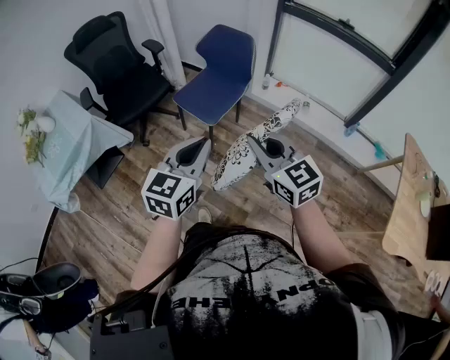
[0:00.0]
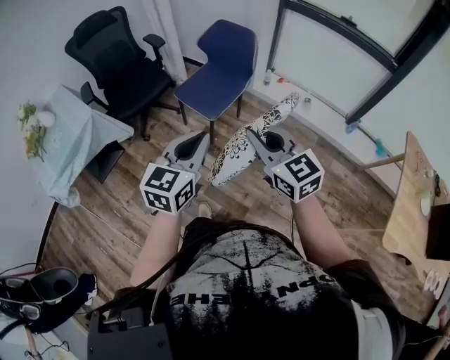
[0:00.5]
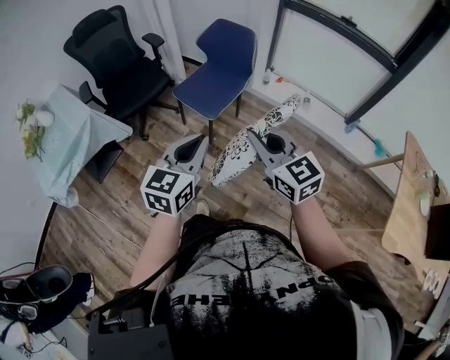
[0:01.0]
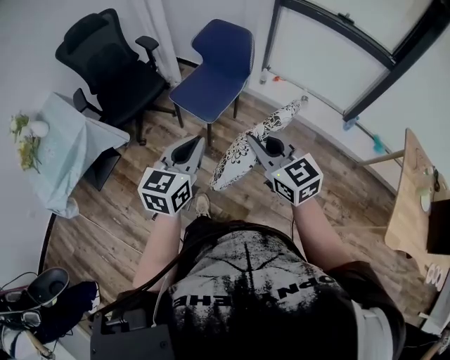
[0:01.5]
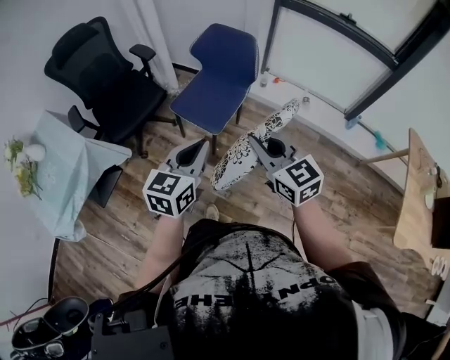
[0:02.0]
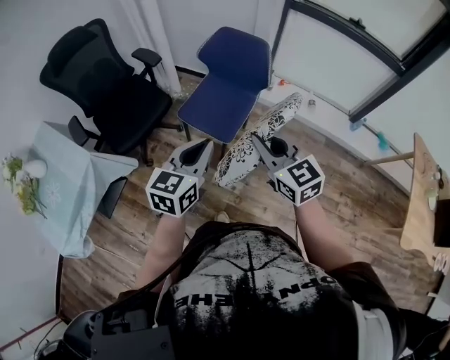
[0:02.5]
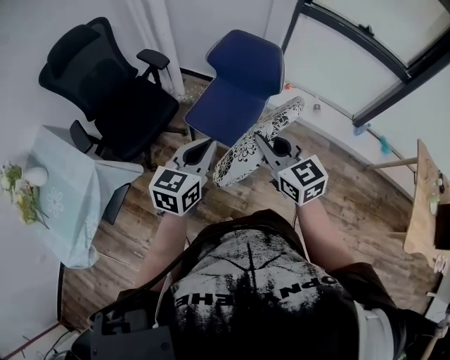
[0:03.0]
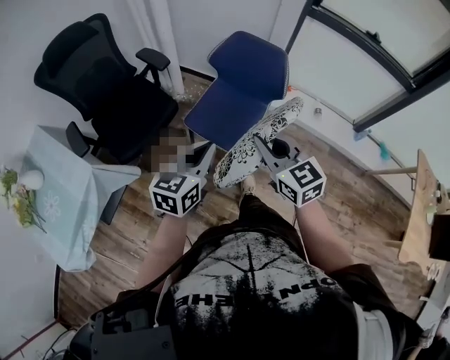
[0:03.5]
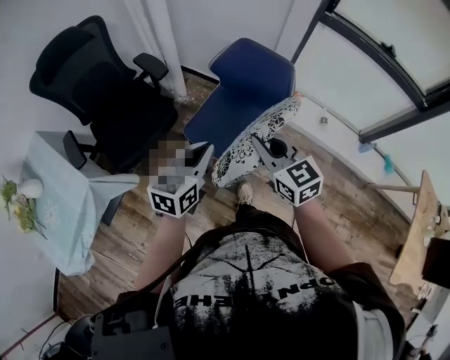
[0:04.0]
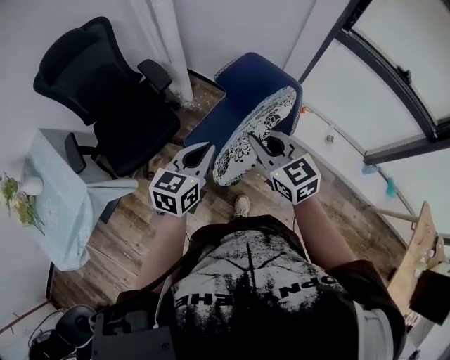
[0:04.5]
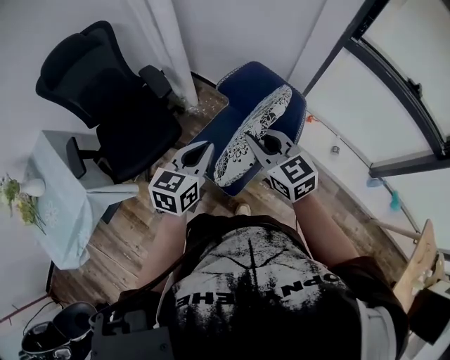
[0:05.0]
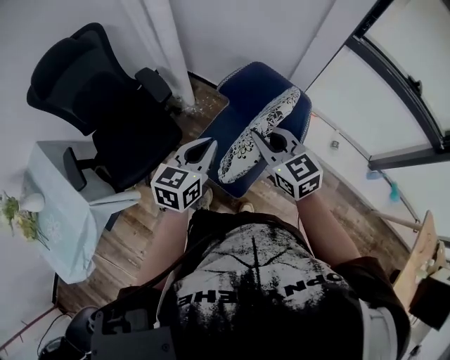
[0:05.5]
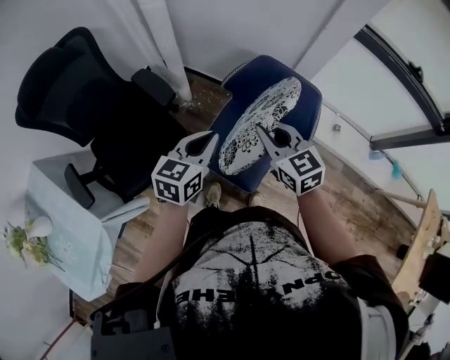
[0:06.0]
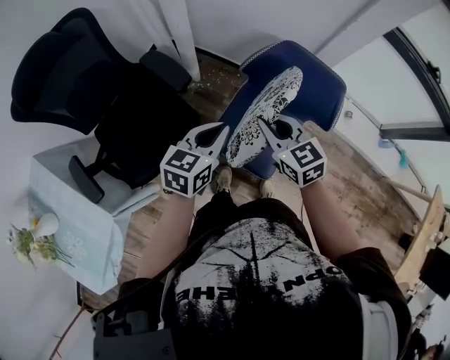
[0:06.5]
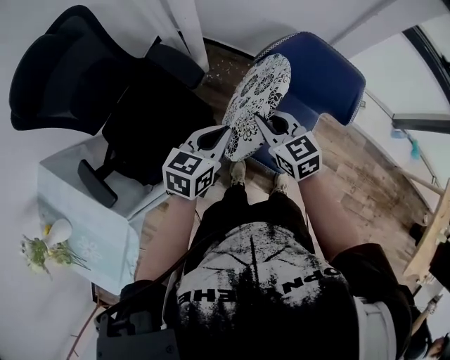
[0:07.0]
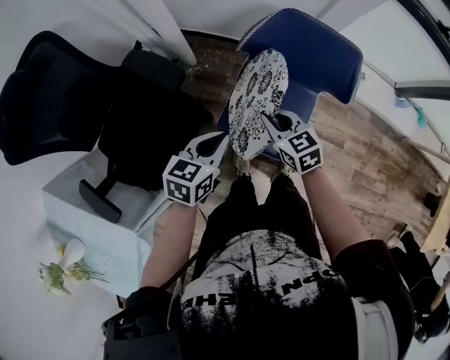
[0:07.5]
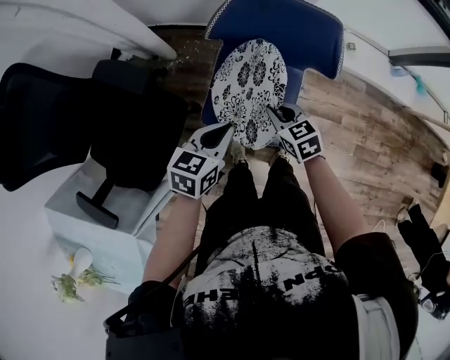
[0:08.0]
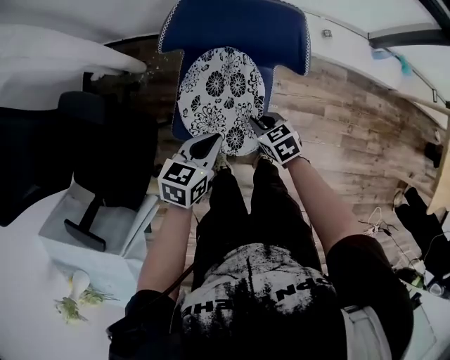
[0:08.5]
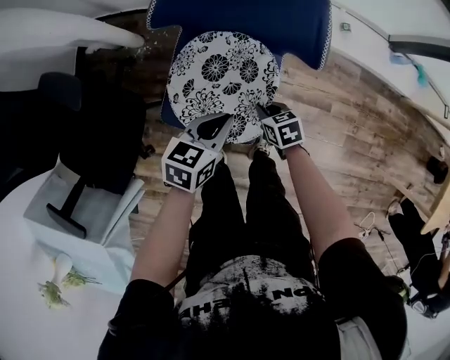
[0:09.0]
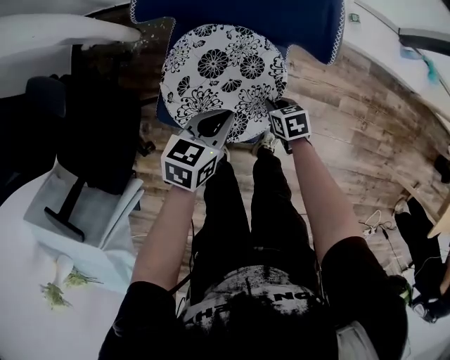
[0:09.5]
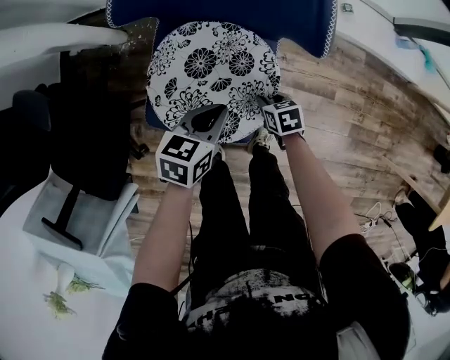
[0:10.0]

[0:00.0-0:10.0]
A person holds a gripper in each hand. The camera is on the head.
0:00.0 to 0:02.0: Both grippers move forward and to the left, approximately 15 cm.
0:02.0 to 0:04.0: The grippers both shift forward by roughly 25 cm.
0:04.0 to 0:06.0: The grippers both shift forward by some 20 cm.
0:06.0 to 0:08.0: The right gripper is displaced downward by some 25 cm, and turns by some 30 degrees. The left gripper is displaced downward by some 15 cm, and turns by approximately 30 degrees.
0:08.0 to 0:10.0: Both grippers move downward and to the right, approximately 25 cm. The right gripper rotates roughly 30 degrees.

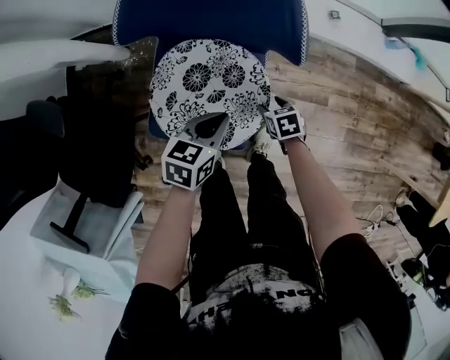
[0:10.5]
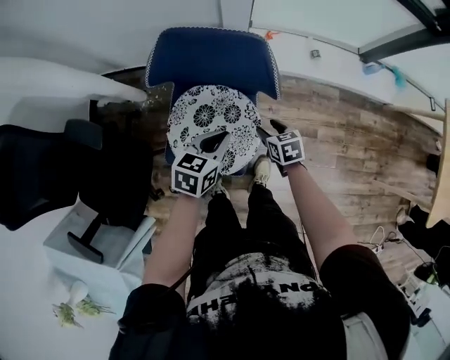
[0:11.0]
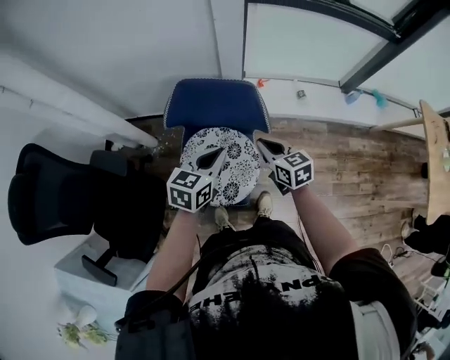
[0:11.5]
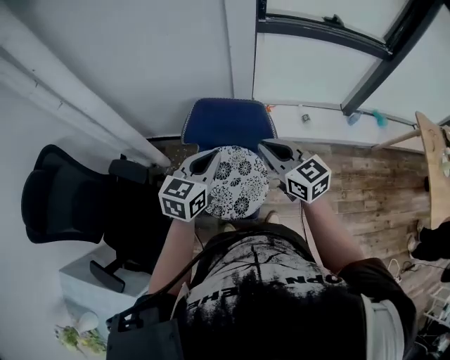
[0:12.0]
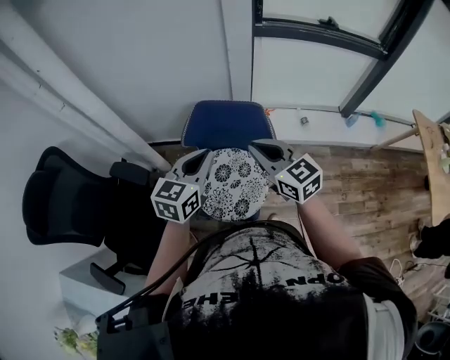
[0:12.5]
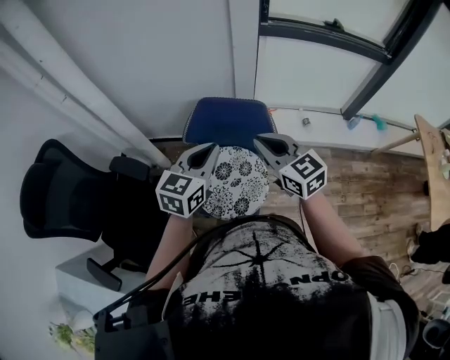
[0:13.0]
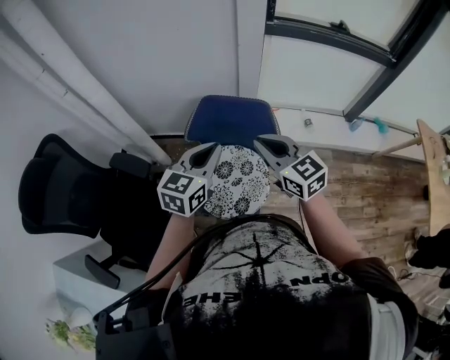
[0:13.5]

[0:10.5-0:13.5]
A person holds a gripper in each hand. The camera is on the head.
0:10.5 to 0:12.0: The left gripper shifts about 35 cm upward, and swivels some 30 degrees. Meanwhile the right gripper travels upward by some 50 cm, tips its fingers upward by roughly 50 degrees, and closes.
0:12.0 to 0:13.5: The grippers make only small movements.

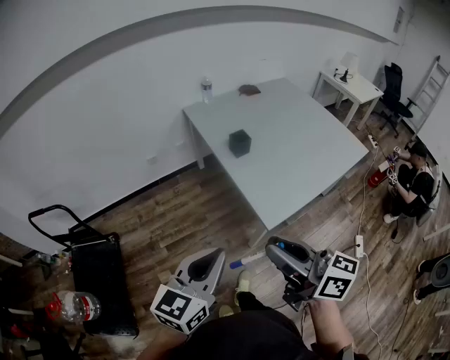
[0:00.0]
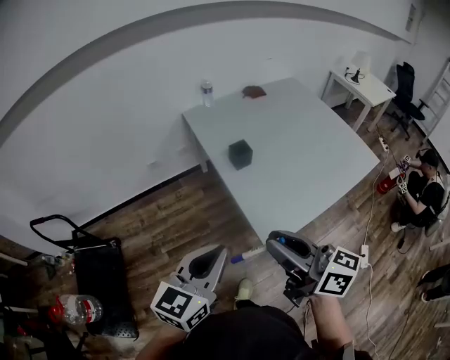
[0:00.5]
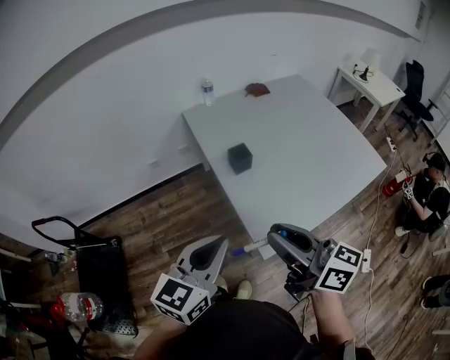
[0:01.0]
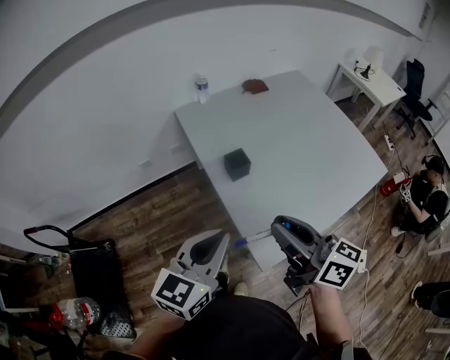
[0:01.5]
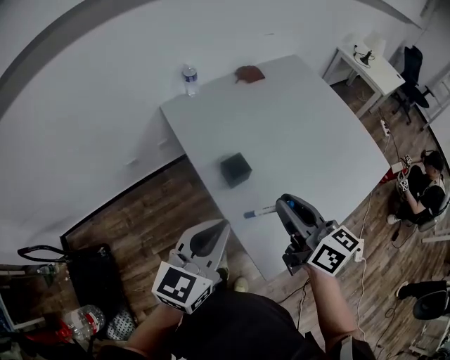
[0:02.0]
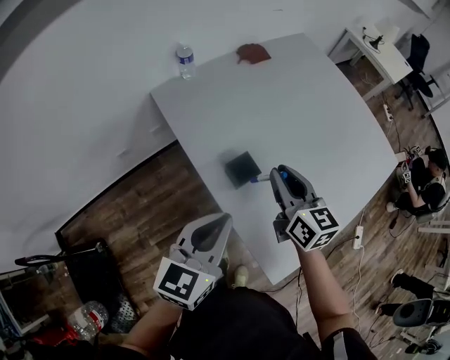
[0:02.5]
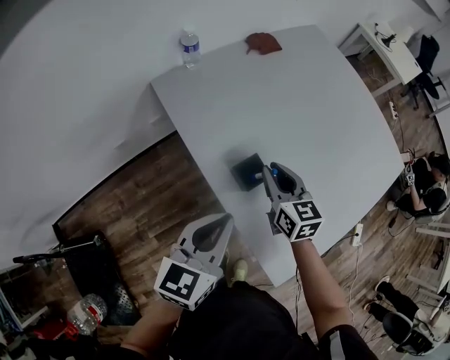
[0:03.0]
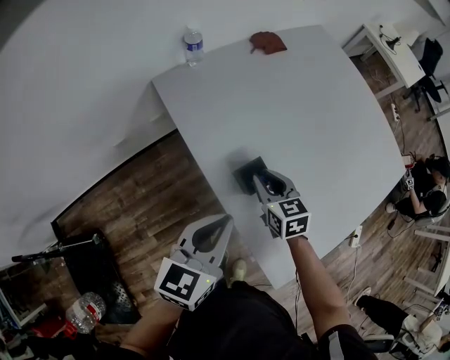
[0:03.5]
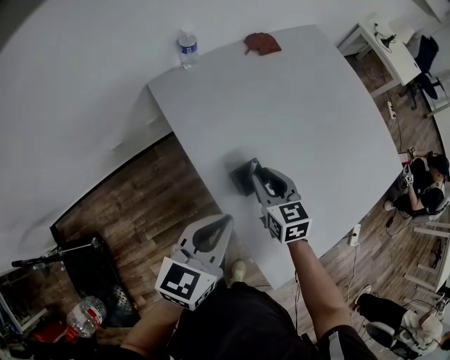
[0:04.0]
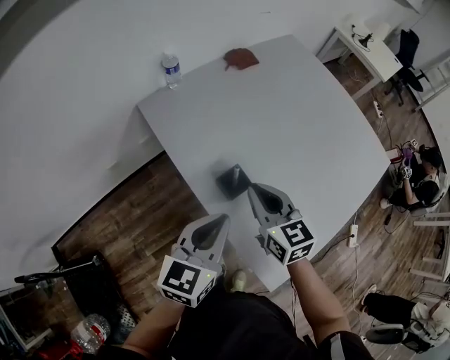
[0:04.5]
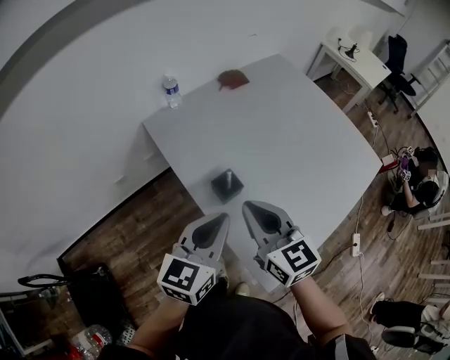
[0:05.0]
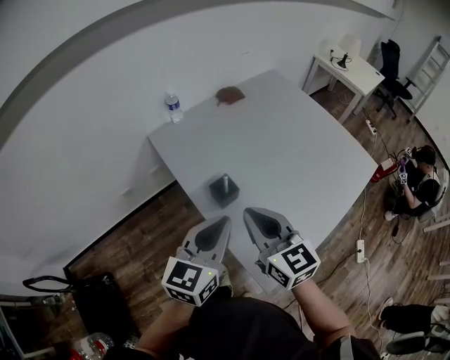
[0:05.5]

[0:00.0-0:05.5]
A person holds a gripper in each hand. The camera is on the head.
0:00.0 to 0:02.0: The grippers both shift forward by approximately 35 cm.
0:02.0 to 0:03.5: The right gripper shifts about 30 cm downward and forward, and angles its fingers downward, by approximately 30 degrees. The left gripper moves forward, downward and to the left, roughly 15 cm.
0:03.5 to 0:05.5: The left gripper shifts approximately 15 cm upward, to the right and backward, while the right gripper shifts approximately 30 cm upward and backward, and swivels approximately 30 degrees.

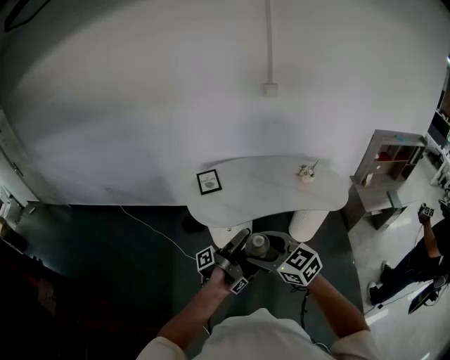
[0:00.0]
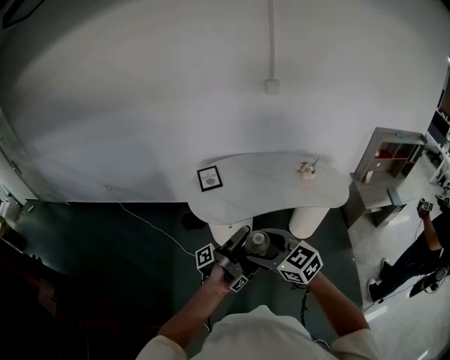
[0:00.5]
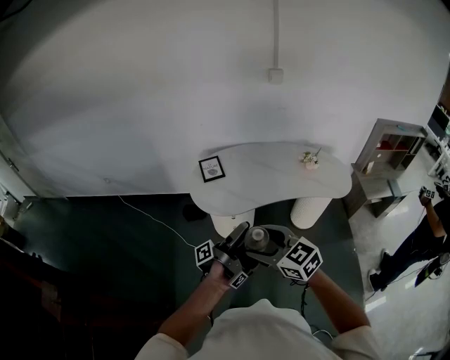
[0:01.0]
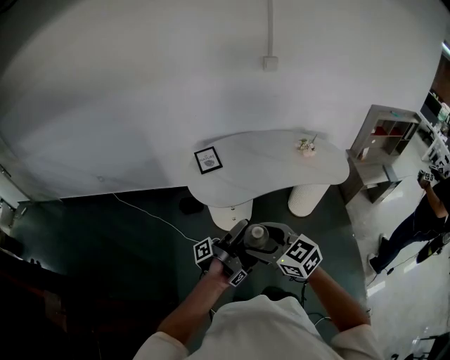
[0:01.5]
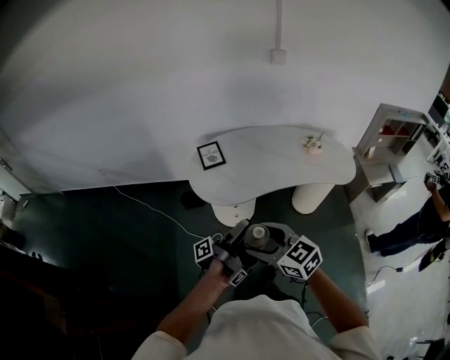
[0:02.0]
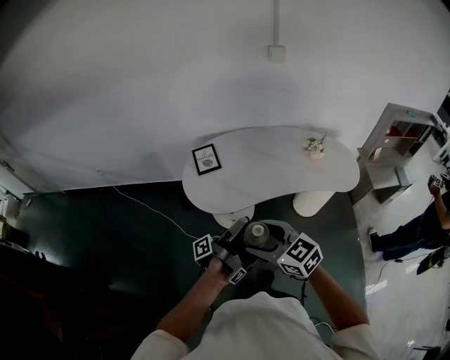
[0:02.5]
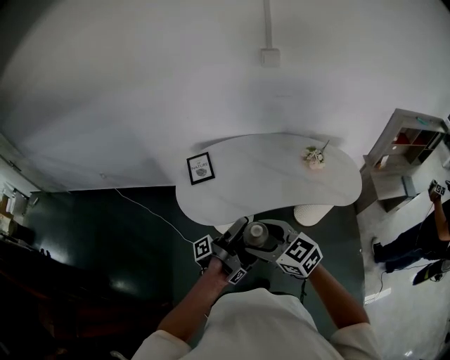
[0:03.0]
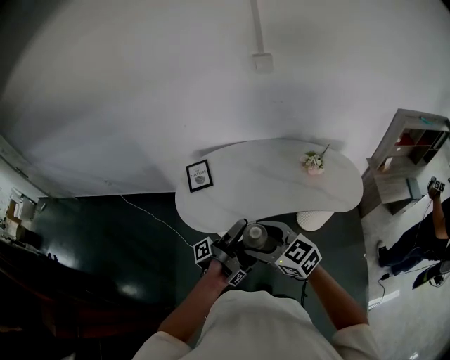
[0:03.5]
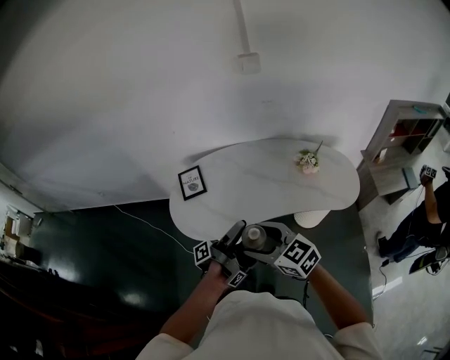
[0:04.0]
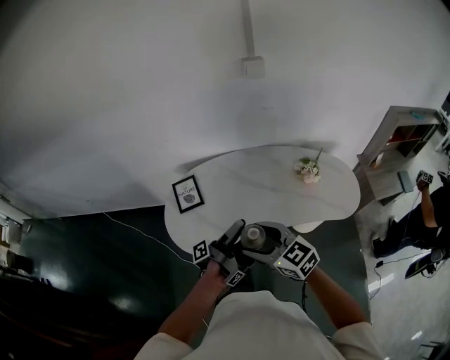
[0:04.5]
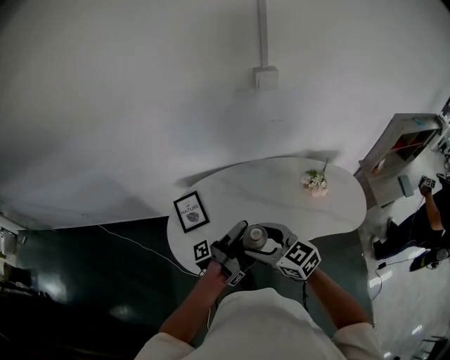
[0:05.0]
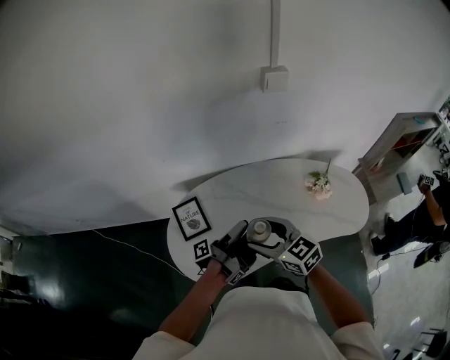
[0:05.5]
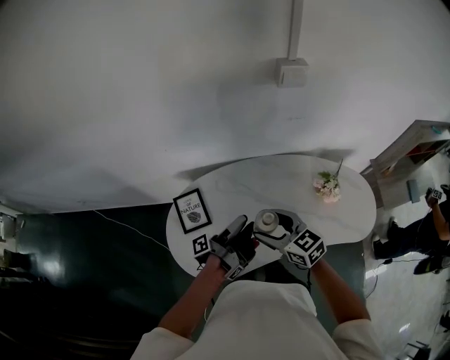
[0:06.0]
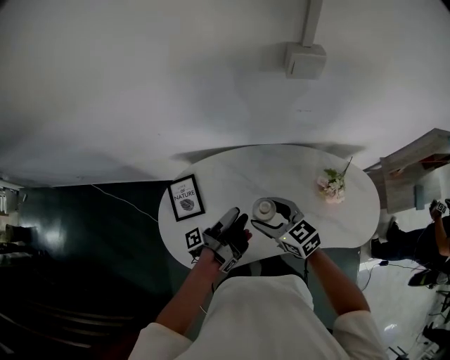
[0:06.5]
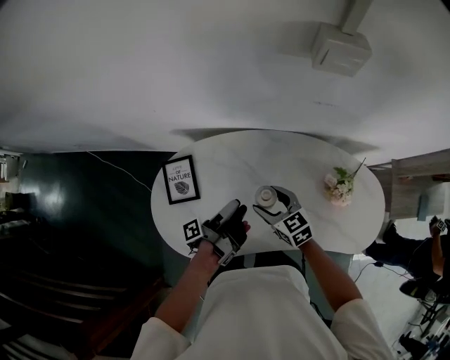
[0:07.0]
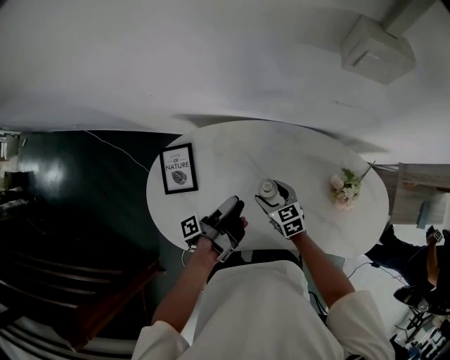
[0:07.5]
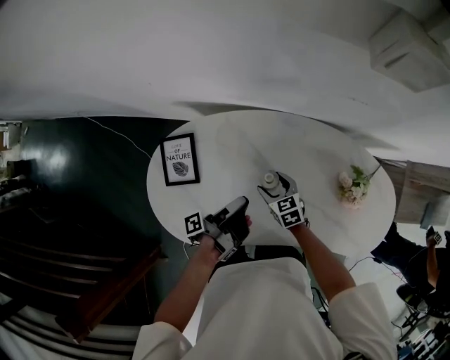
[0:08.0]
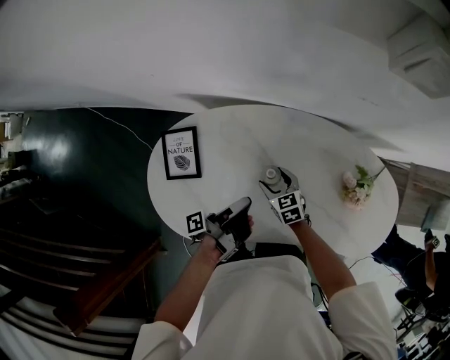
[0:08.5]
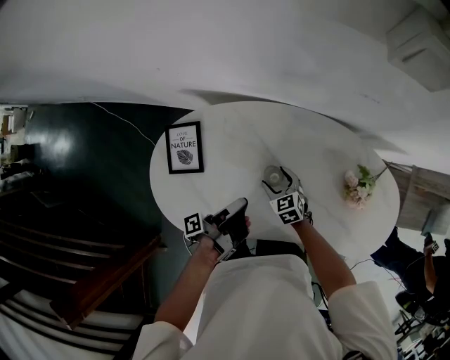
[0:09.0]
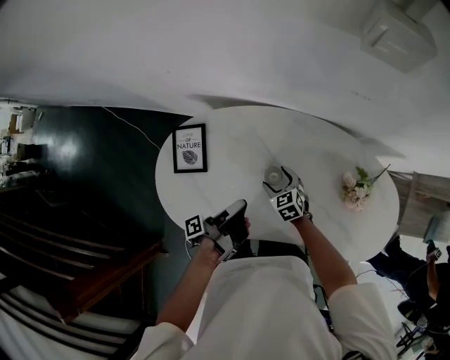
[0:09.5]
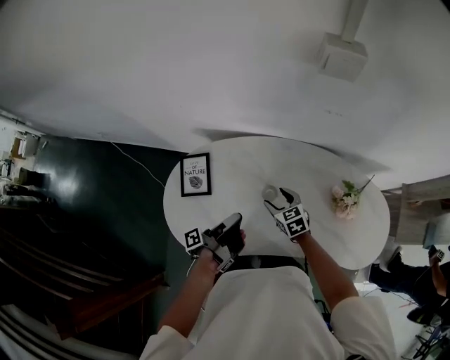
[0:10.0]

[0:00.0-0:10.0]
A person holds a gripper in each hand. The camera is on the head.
0:00.0 to 0:02.0: The right gripper moves approximately 10 cm.
0:02.0 to 0:04.0: The right gripper moves about 25 cm.
0:04.0 to 0:06.0: The right gripper shifts by about 35 cm.
0:06.0 to 0:08.0: The right gripper goes about 35 cm downward, and changes its angle by roughly 20 degrees.
0:08.0 to 0:10.0: The right gripper is displaced upward by approximately 10 cm.
